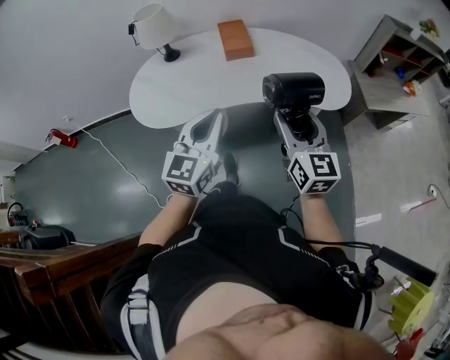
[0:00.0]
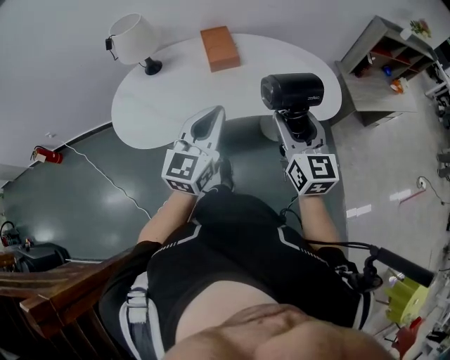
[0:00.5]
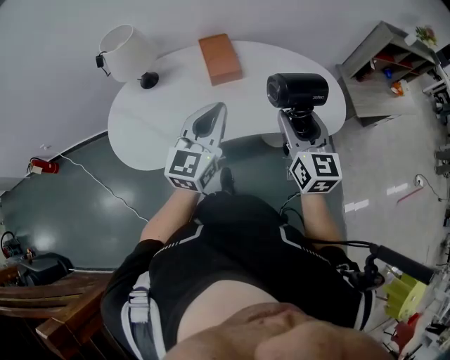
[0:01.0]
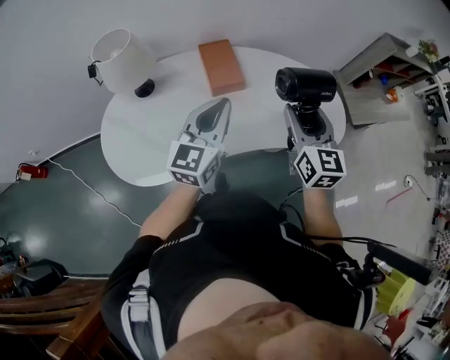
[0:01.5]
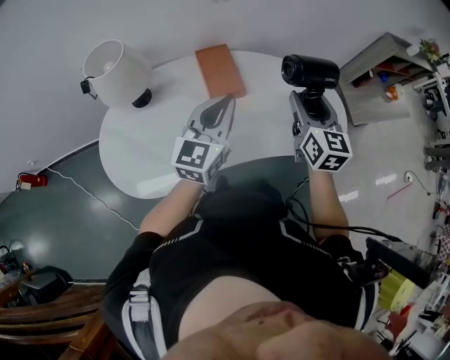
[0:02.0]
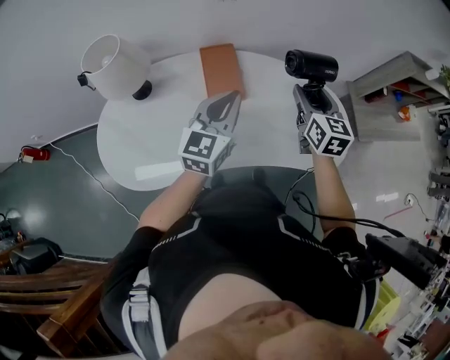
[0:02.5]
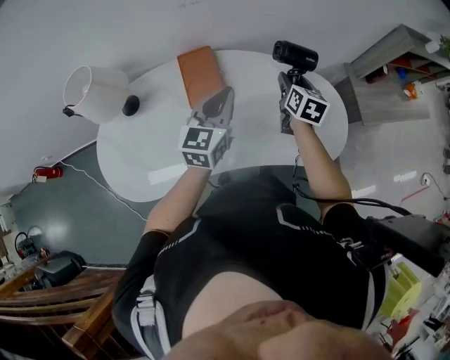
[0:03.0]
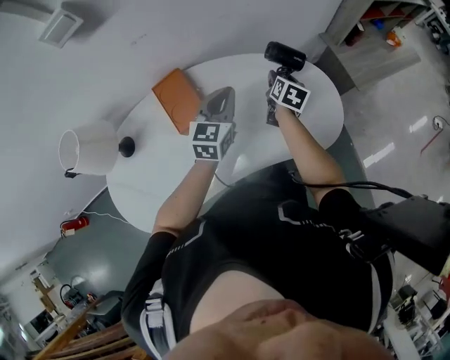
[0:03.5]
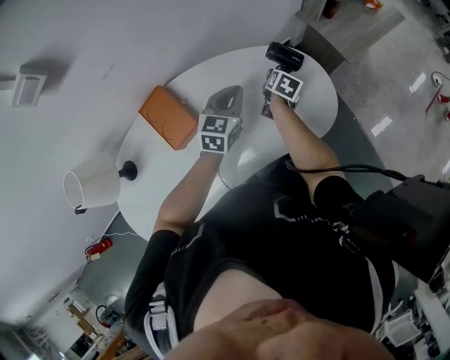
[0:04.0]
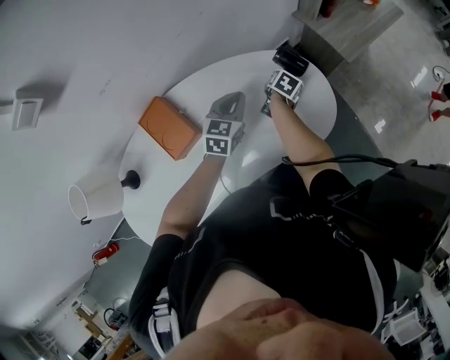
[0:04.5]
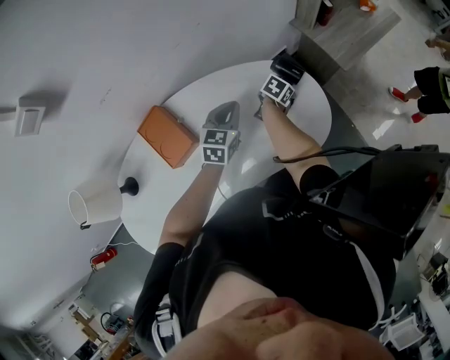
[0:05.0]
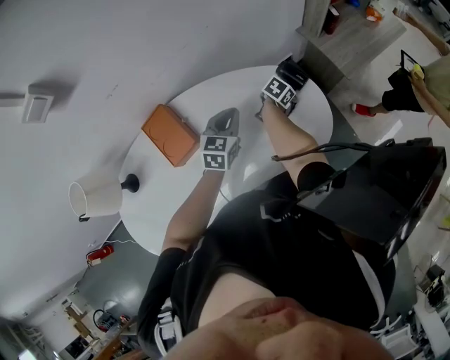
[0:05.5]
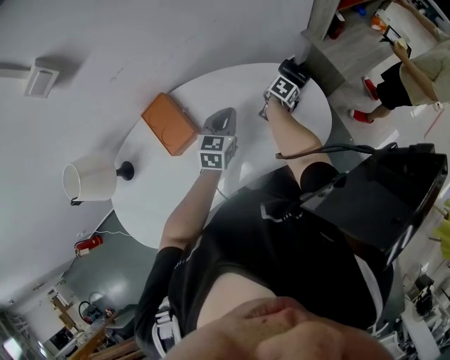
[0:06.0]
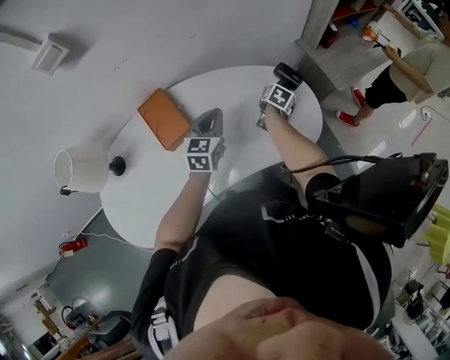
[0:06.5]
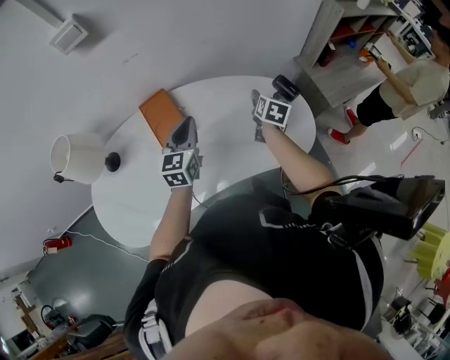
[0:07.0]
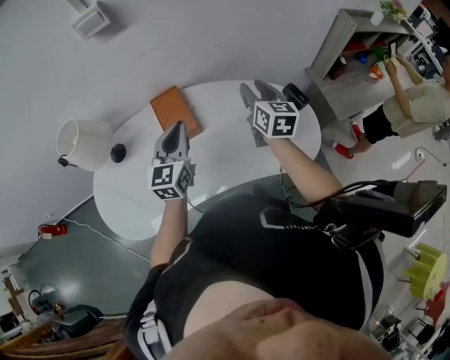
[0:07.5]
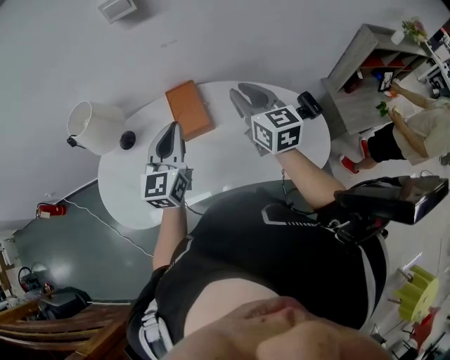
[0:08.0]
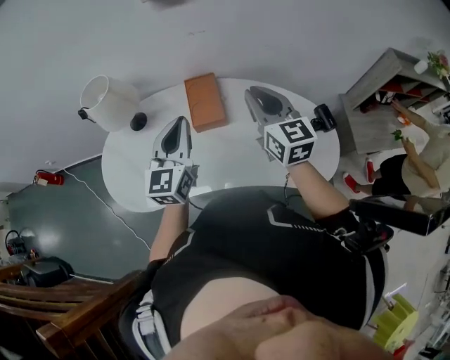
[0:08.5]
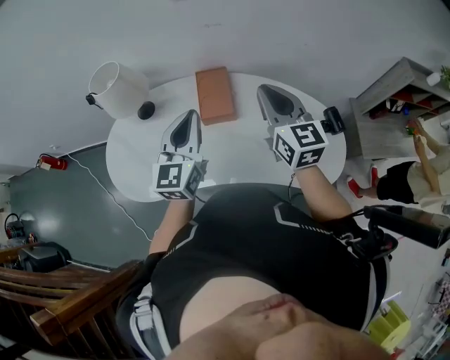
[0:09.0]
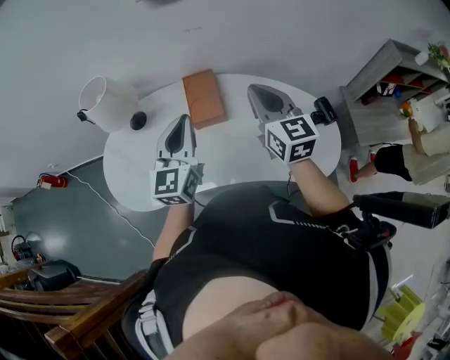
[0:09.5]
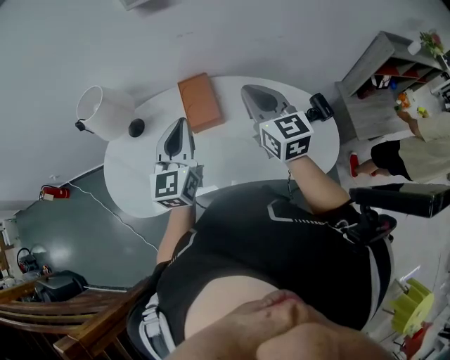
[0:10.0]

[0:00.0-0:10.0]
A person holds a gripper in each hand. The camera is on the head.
0:00.0 to 0:02.0: Both grippers travel together forward, roughly 35 cm.
0:02.0 to 0:04.0: The left gripper shifts by about 35 cm, and swivels roughly 30 degrees. Meanwhile the right gripper goes some 30 cm downward, and tilts its fingers about 40 degrees downward.
0:04.0 to 0:06.0: The right gripper shifts by about 5 cm.
0:06.0 to 0:08.0: The left gripper shifts by some 30 cm, and turns by about 40 degrees. Meanwhile the right gripper shifts approximately 35 cm upward, points its fingers approximately 50 degrees further upward, and closes its fingers.
0:08.0 to 0:10.0: The grippers move only a little.

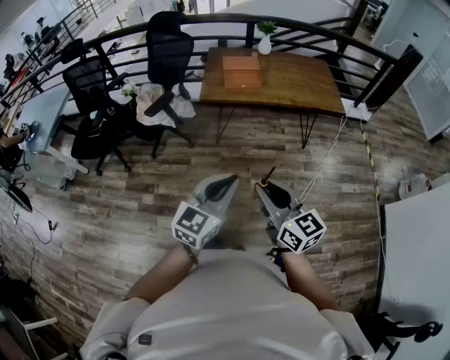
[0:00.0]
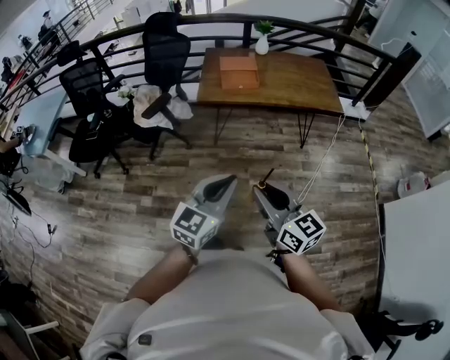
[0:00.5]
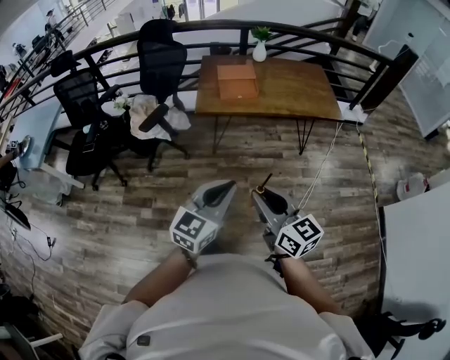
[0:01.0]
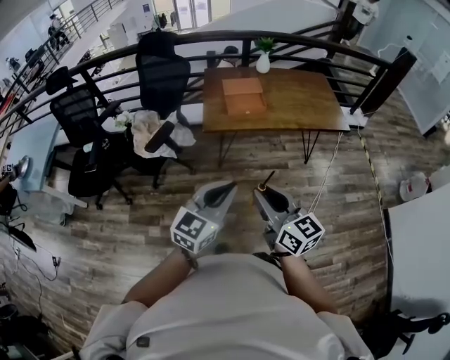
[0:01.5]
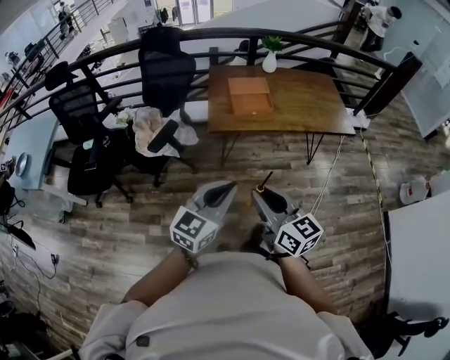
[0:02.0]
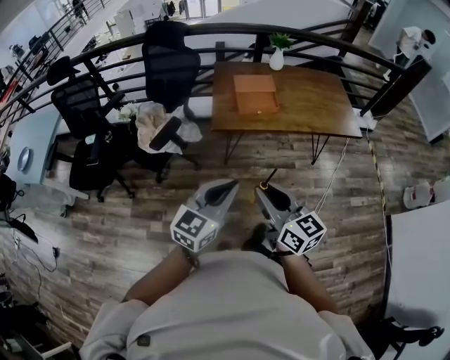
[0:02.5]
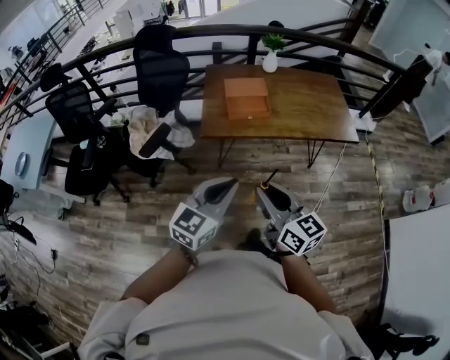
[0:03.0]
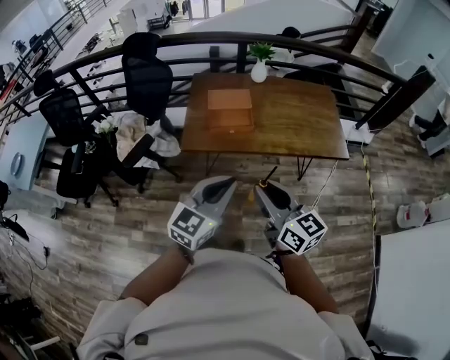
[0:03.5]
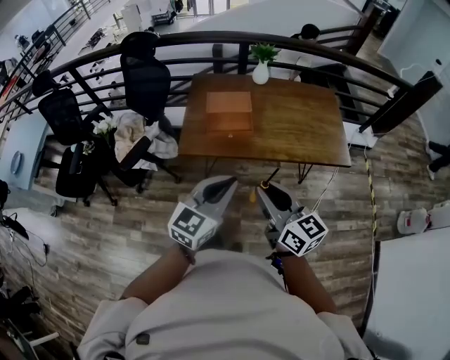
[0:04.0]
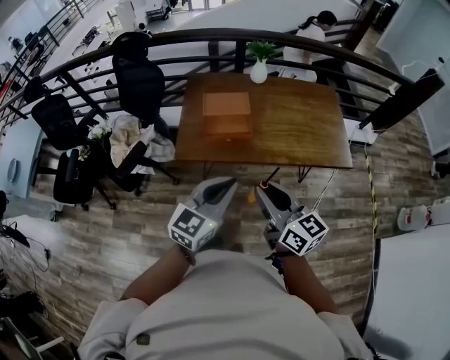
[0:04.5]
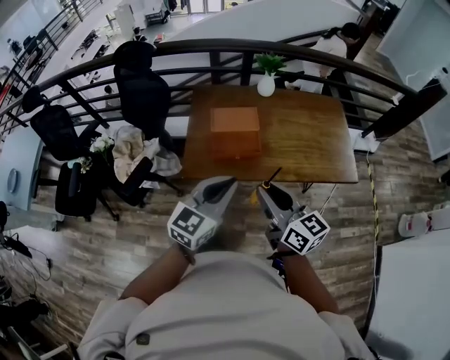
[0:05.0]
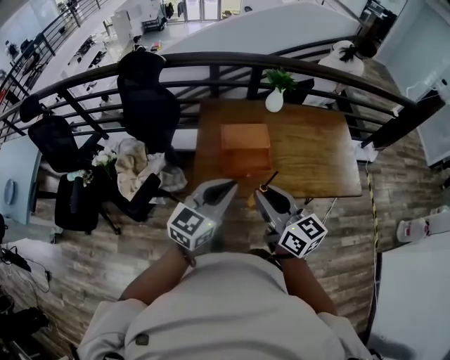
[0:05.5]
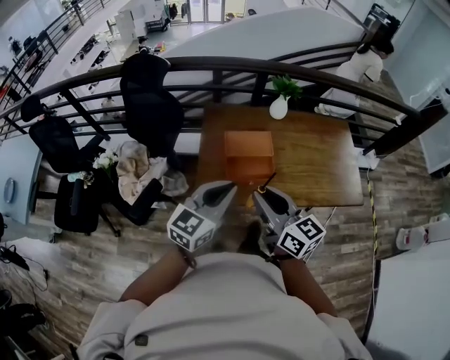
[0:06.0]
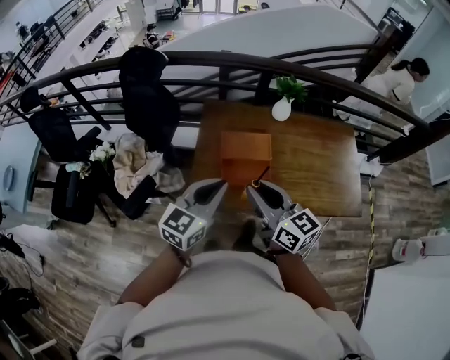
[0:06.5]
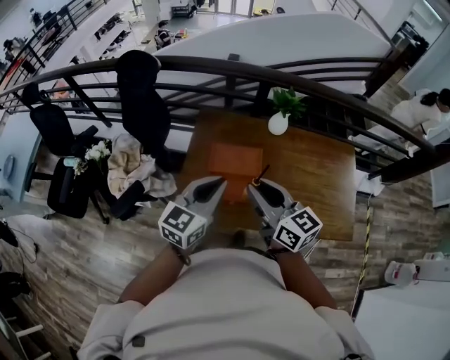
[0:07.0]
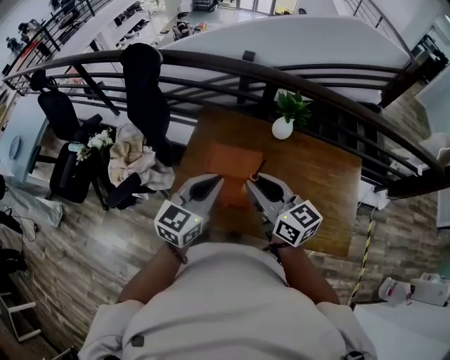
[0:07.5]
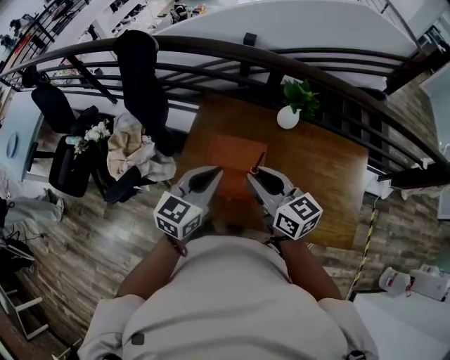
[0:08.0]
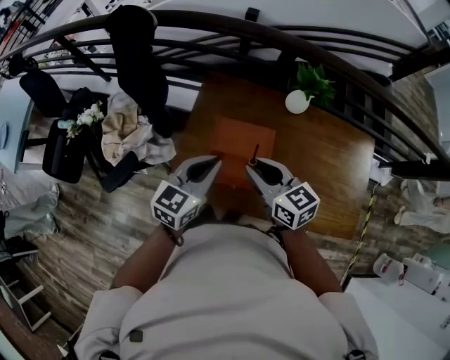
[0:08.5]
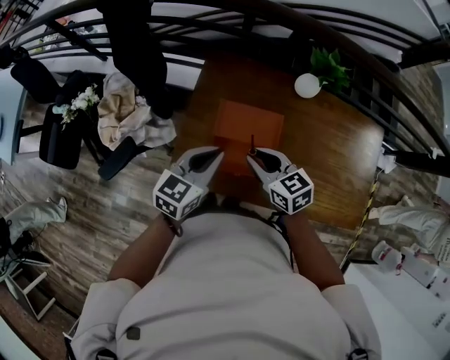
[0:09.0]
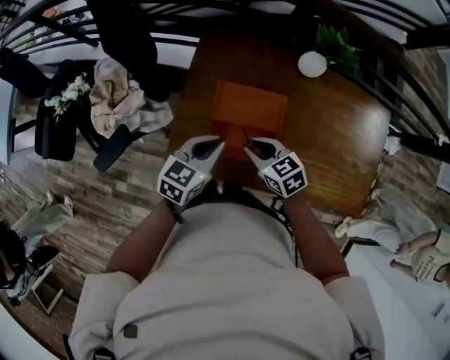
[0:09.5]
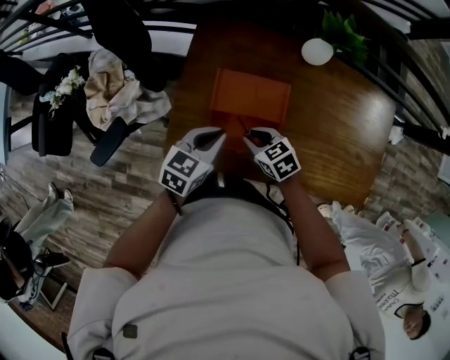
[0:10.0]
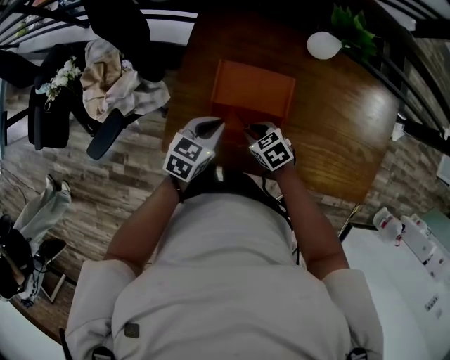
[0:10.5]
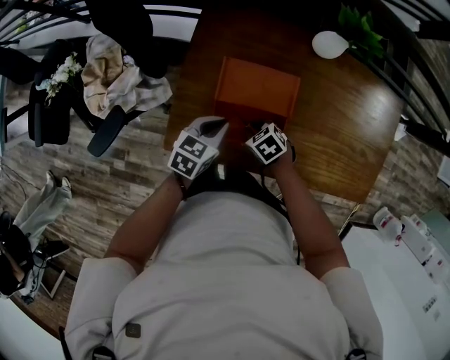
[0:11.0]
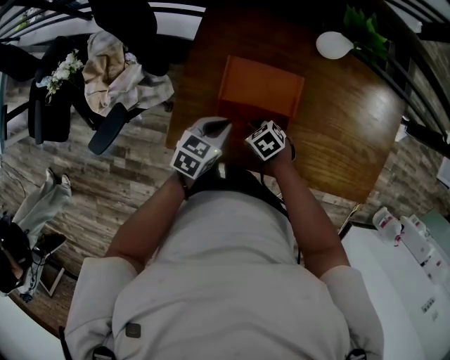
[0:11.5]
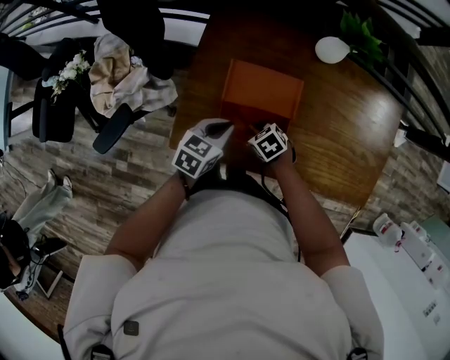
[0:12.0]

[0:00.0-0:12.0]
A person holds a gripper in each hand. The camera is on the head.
0:00.0 to 0:02.0: The two grippers go some 25 cm forward and to the left.
0:02.0 to 0:04.0: The grippers both shift forward and to the right by some 35 cm.
0:04.0 to 0:06.0: The grippers both shift forward and to the left by some 30 cm.
0:06.0 to 0:08.0: The grippers both shift forward and to the right by about 25 cm.
0:08.0 to 0:10.0: The two grippers go approximately 25 cm downward. The right gripper points its fingers approximately 40 degrees further downward, while the left gripper turns by about 20 degrees.
0:10.0 to 0:12.0: The right gripper heads downward, covering approximately 10 cm, and swivels roughly 20 degrees. Meanwhile the left gripper heads downward, covering about 5 cm.

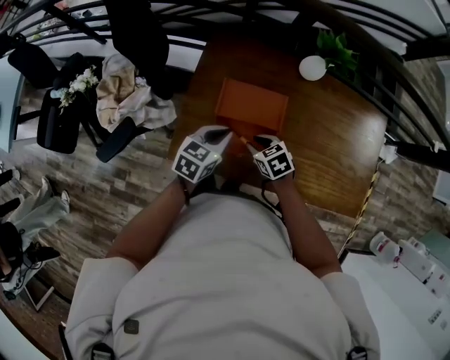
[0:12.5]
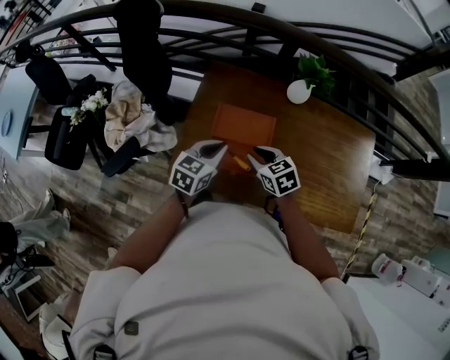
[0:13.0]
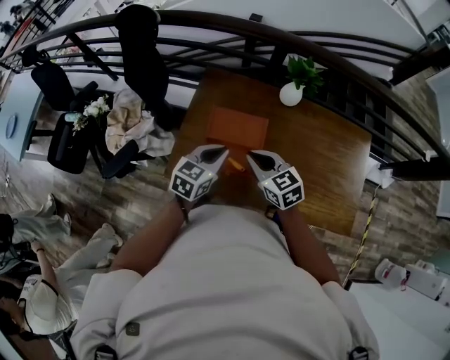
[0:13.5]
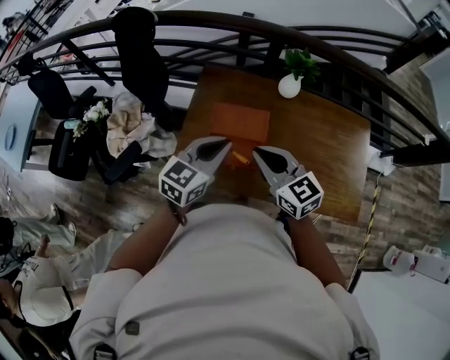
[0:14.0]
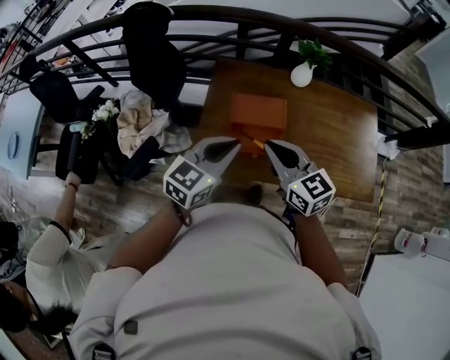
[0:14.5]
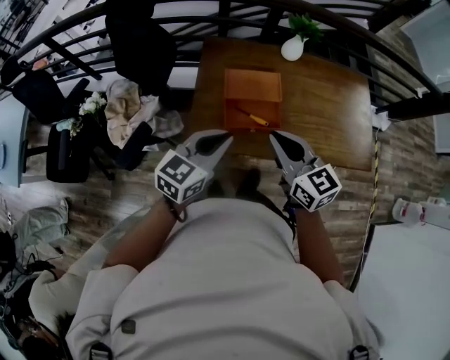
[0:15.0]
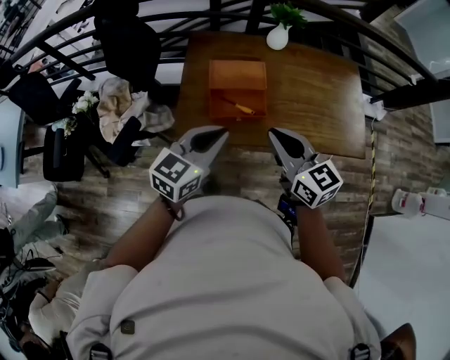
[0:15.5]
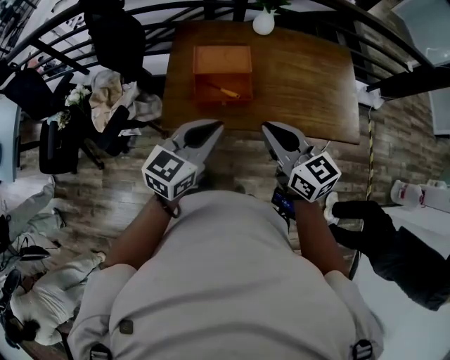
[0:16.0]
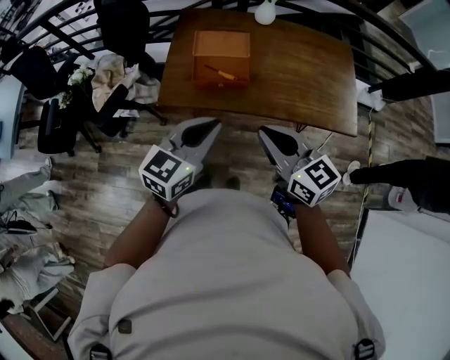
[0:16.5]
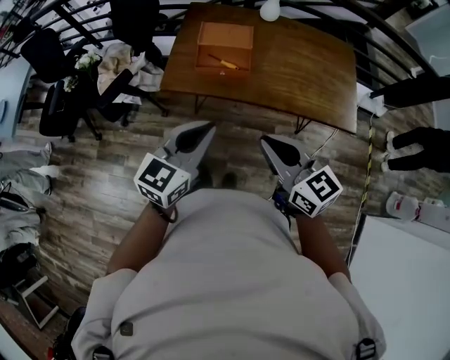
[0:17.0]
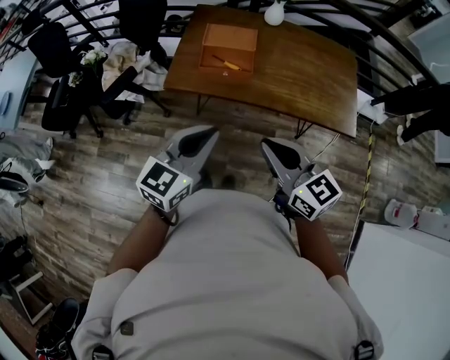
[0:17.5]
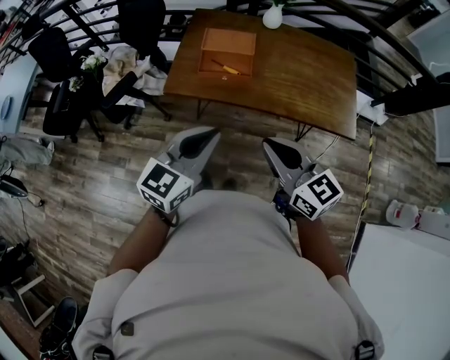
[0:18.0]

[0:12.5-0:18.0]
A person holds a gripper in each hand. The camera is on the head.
0:12.5 to 0:14.5: The left gripper goes roughly 25 cm upward and backward, and swivels about 20 degrees; the right gripper is displaced upward by roughly 30 cm, angles its fingers upward, by approximately 40 degrees, and closes its fingers.
0:14.5 to 0:16.0: Both grippers travel together backward and to the right, approximately 15 cm.
0:16.0 to 0:18.0: The grippers both shift backward by approximately 20 cm.
